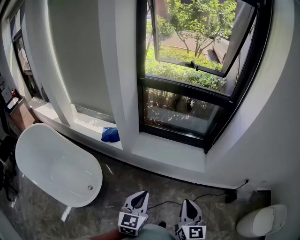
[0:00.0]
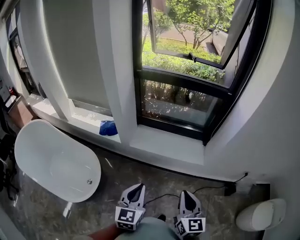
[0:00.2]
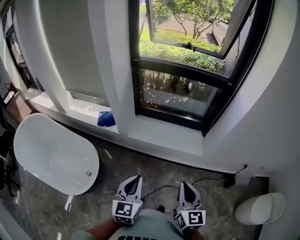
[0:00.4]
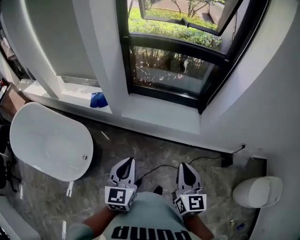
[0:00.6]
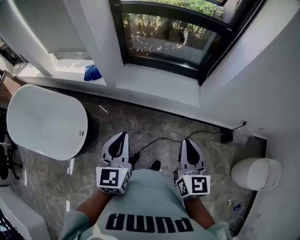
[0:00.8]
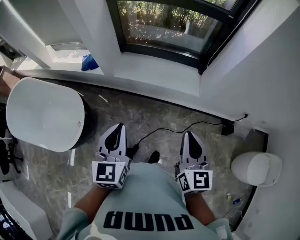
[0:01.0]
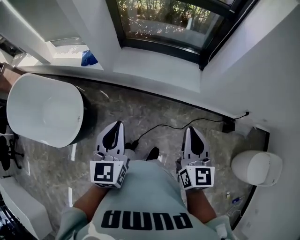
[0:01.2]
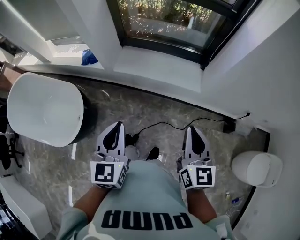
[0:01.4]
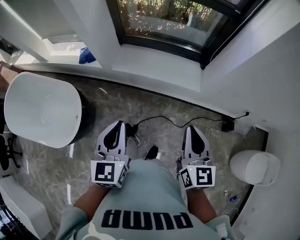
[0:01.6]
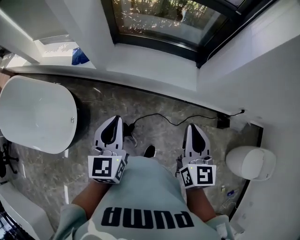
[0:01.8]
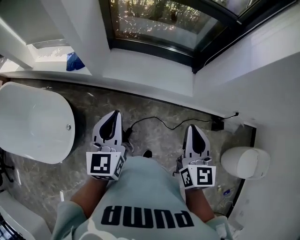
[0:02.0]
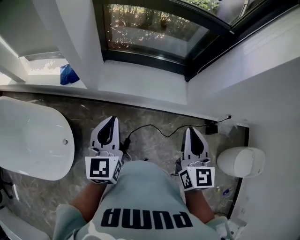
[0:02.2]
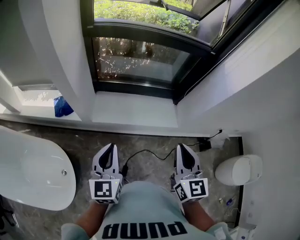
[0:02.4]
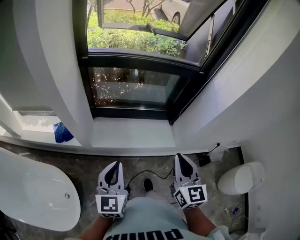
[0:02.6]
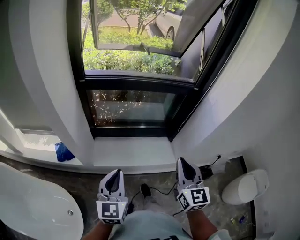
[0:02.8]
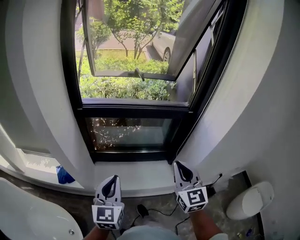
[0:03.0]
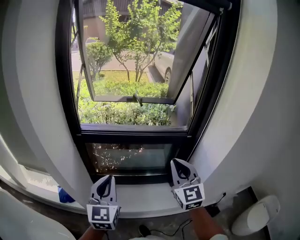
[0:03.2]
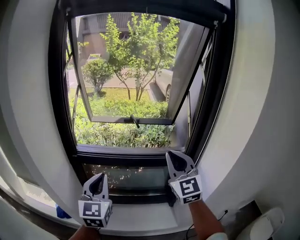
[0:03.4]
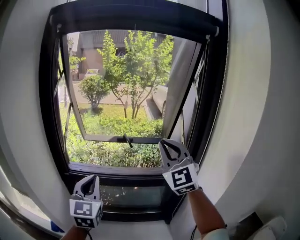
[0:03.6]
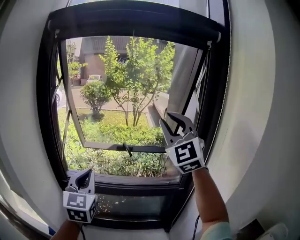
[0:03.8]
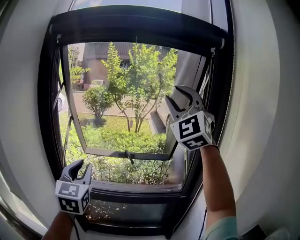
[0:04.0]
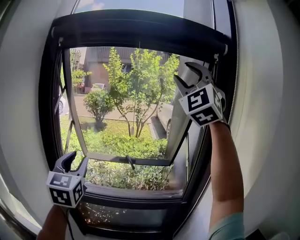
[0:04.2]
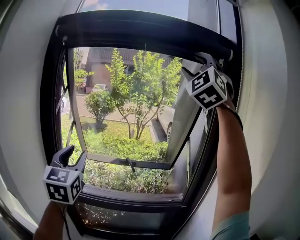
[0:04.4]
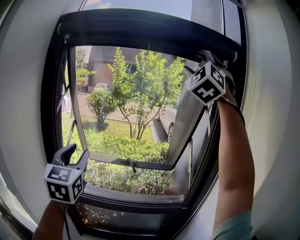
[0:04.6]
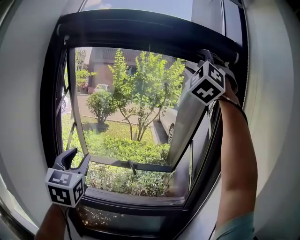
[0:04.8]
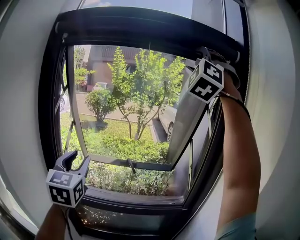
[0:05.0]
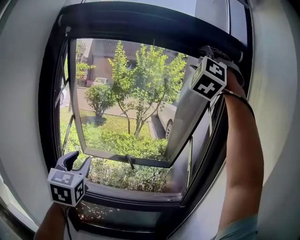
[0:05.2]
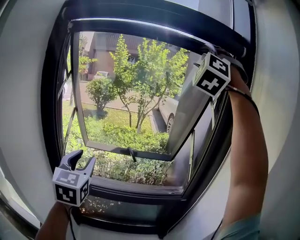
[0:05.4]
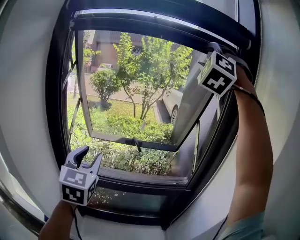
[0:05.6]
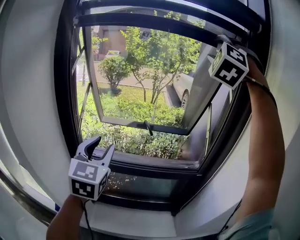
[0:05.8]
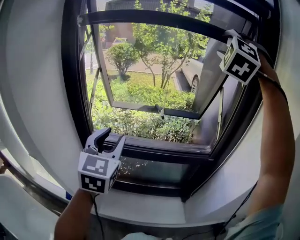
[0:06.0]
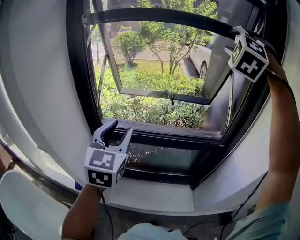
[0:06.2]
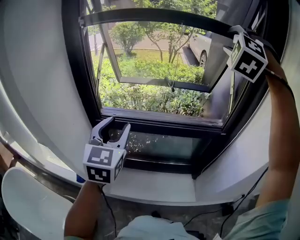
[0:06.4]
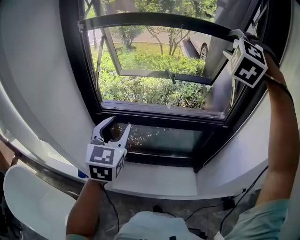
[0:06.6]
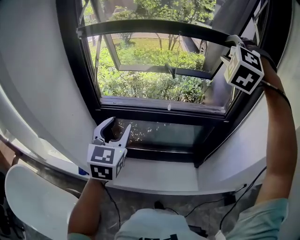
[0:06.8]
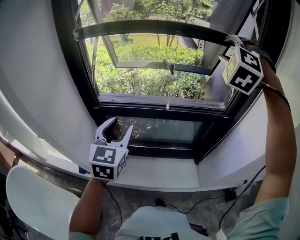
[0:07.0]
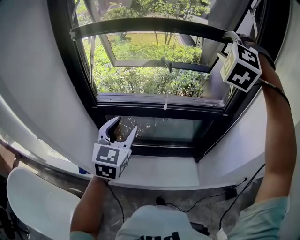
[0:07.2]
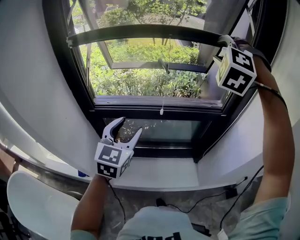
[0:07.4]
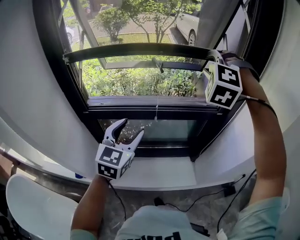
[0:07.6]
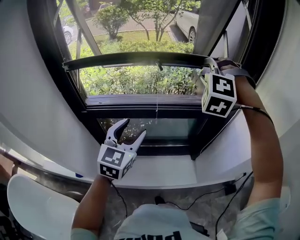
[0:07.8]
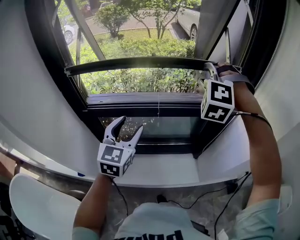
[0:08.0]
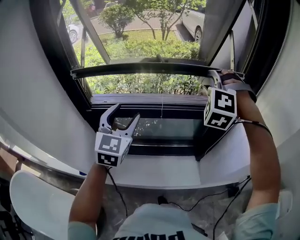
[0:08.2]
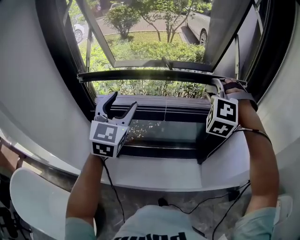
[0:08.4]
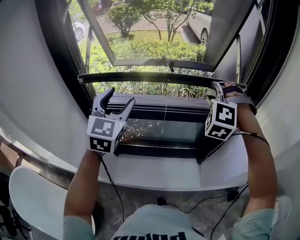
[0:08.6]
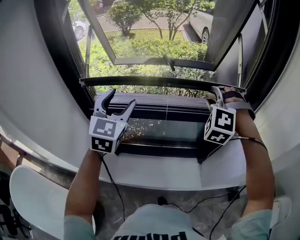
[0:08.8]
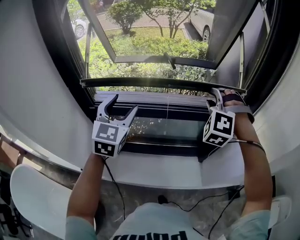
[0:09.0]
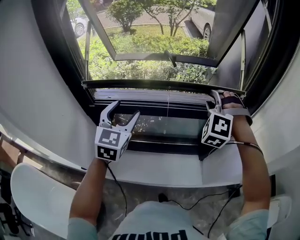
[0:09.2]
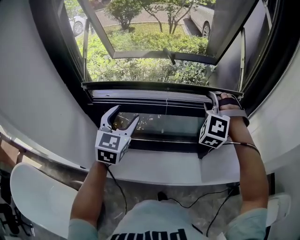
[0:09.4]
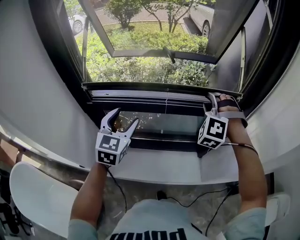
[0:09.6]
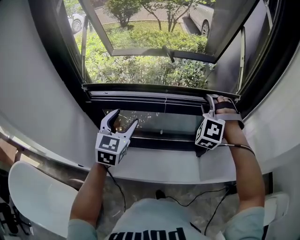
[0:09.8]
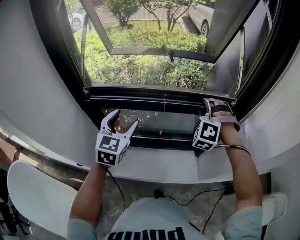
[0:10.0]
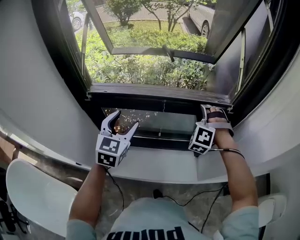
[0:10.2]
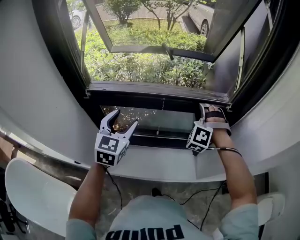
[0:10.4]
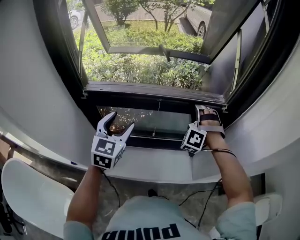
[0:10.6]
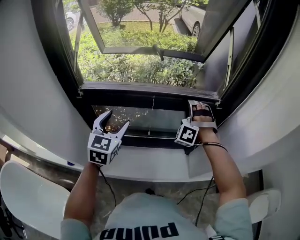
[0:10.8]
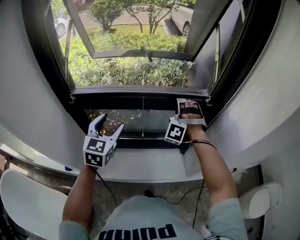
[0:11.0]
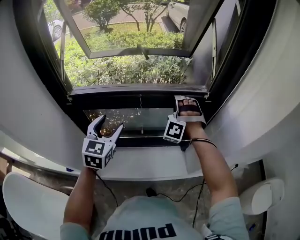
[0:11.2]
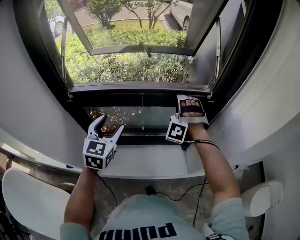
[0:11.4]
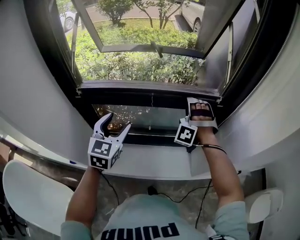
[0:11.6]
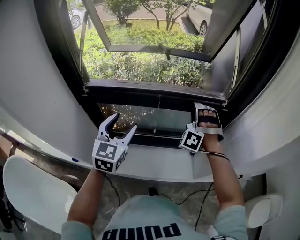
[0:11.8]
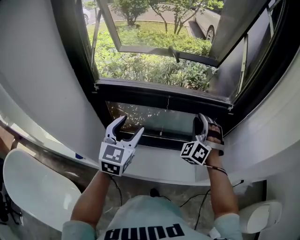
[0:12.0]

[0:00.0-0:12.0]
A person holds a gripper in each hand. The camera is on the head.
0.0 to 1.6 s: The left gripper changes place by roughly 5 cm. Meanwhile the right gripper travels to the right and forward by about 10 cm.
1.6 to 3.0 s: The right gripper travels forward and upward by approximately 30 cm, and rotates some 30 degrees. The left gripper shifts roughly 30 cm forward, and rotates roughly 20 degrees.
3.0 to 4.4 s: The left gripper moves upward and forward, approximately 50 cm, rotates approximately 20 degrees, and opens its fingers; the right gripper heads upward and forward, covering approximately 70 cm, rolls counterclockwise, seen from behind, by about 60 degrees, and opens up.
4.4 to 6.0 s: The right gripper goes about 15 cm downward, and swivels approximately 30 degrees; the left gripper is displaced downward and backward by roughly 15 cm.
6.0 to 7.6 s: The left gripper is displaced downward by about 15 cm. Meanwhile the right gripper is displaced downward by roughly 30 cm, and changes its angle by approximately 20 degrees.
7.6 to 9.0 s: The left gripper is displaced to the left and forward by about 10 cm. The right gripper moves downward, about 15 cm.
9.0 to 10.4 s: Both grippers move downward, roughly 10 cm.
10.4 to 12.0 s: Both grippers travel together backward, approximately 5 cm. The right gripper rotates about 20 degrees.

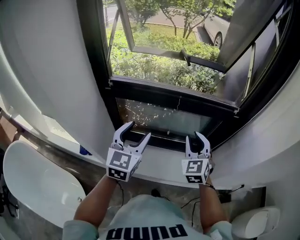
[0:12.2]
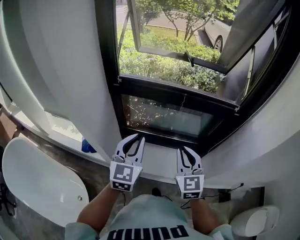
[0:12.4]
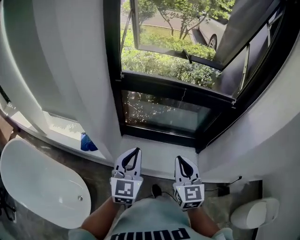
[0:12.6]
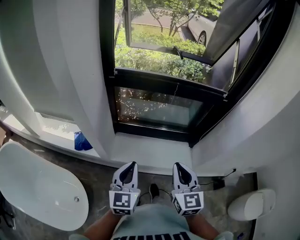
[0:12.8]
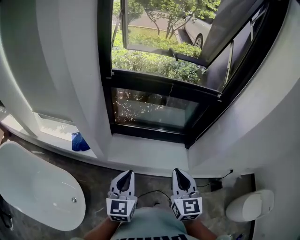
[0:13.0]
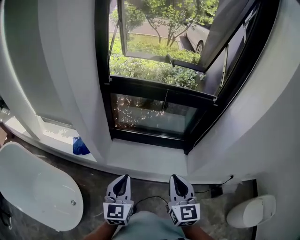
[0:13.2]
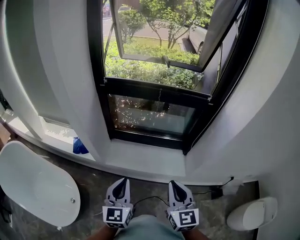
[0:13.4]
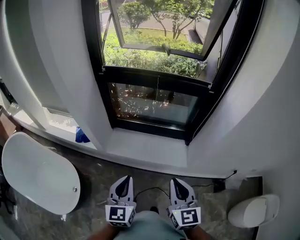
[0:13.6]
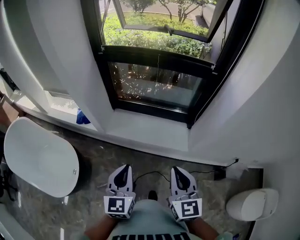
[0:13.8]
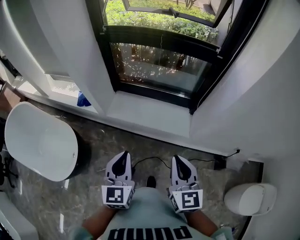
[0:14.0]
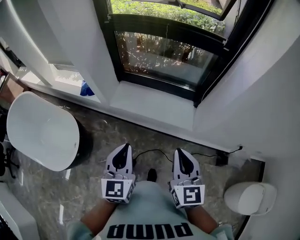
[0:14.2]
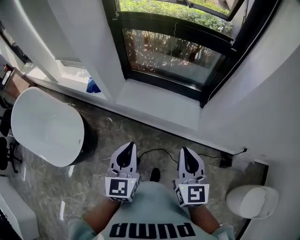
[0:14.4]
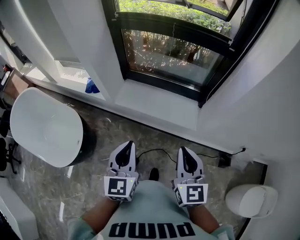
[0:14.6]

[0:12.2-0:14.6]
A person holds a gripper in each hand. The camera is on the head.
12.2 to 13.4 s: The grippers both shift backward by approximately 30 cm. The left gripper closes; the right gripper turns by about 30 degrees, and closes its fingers.
13.4 to 14.6 s: The left gripper shifts about 15 cm backward and to the right; the right gripper shifts some 15 cm backward, to the right and downward.

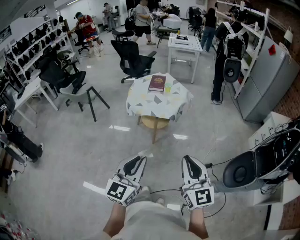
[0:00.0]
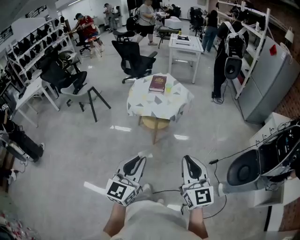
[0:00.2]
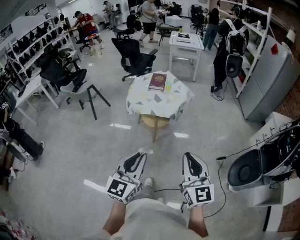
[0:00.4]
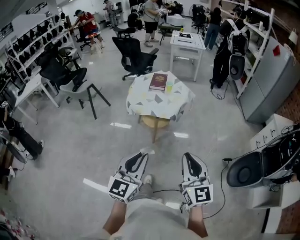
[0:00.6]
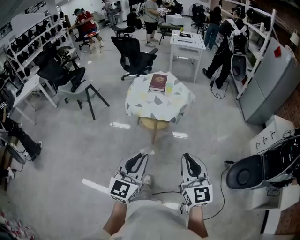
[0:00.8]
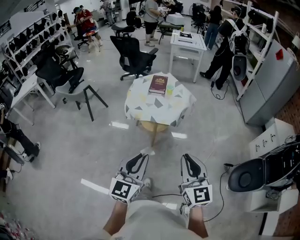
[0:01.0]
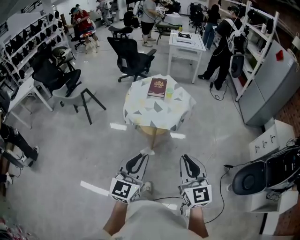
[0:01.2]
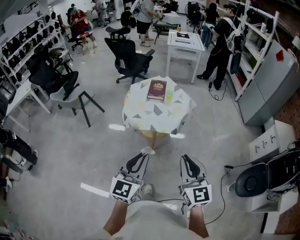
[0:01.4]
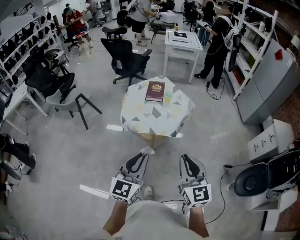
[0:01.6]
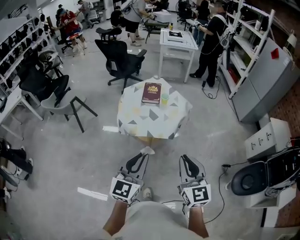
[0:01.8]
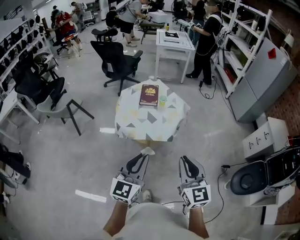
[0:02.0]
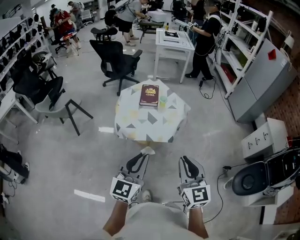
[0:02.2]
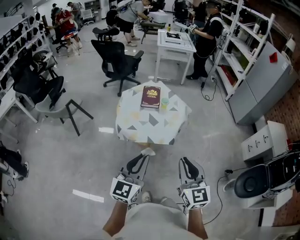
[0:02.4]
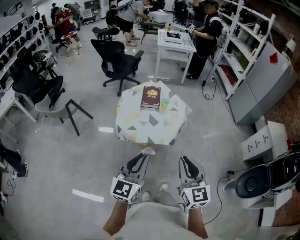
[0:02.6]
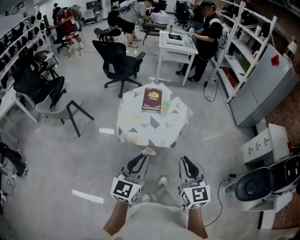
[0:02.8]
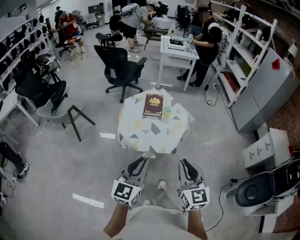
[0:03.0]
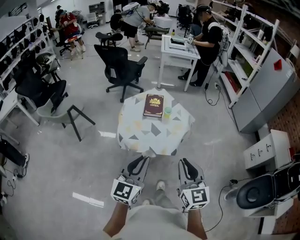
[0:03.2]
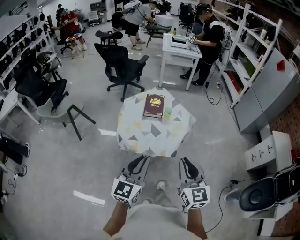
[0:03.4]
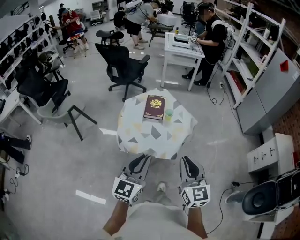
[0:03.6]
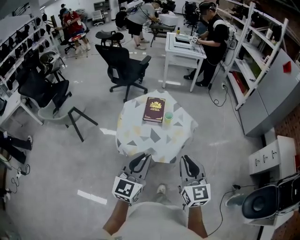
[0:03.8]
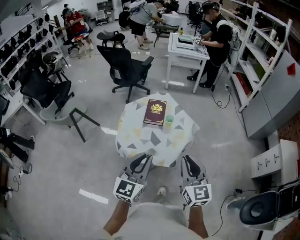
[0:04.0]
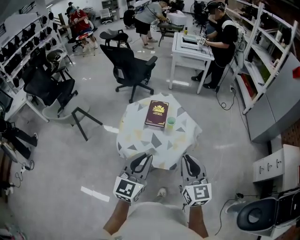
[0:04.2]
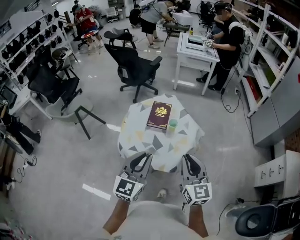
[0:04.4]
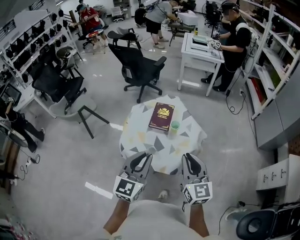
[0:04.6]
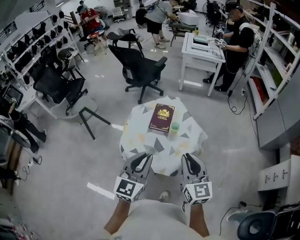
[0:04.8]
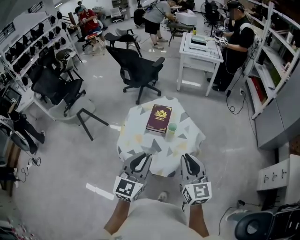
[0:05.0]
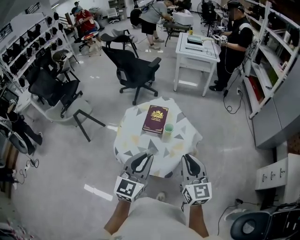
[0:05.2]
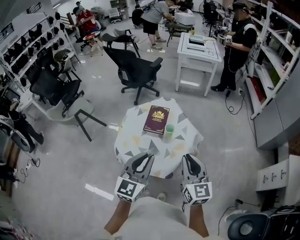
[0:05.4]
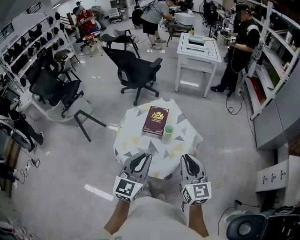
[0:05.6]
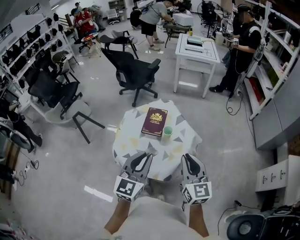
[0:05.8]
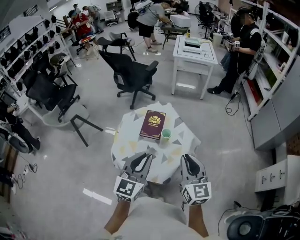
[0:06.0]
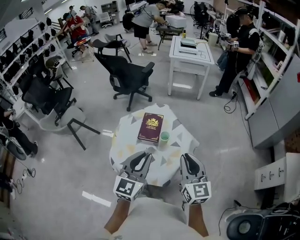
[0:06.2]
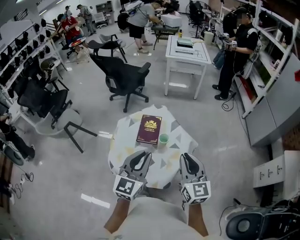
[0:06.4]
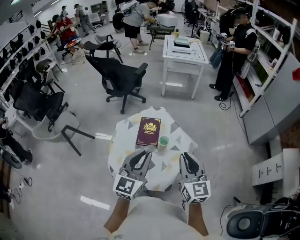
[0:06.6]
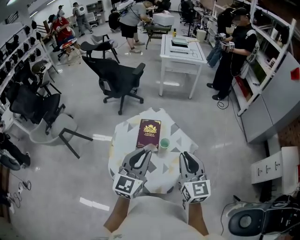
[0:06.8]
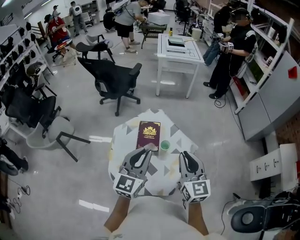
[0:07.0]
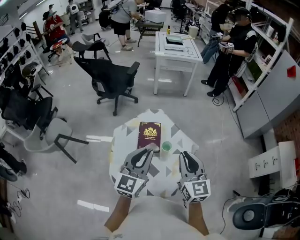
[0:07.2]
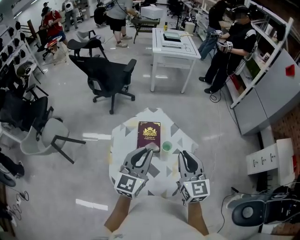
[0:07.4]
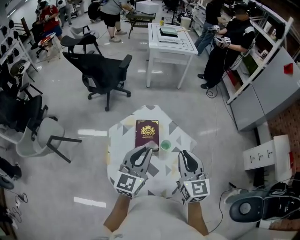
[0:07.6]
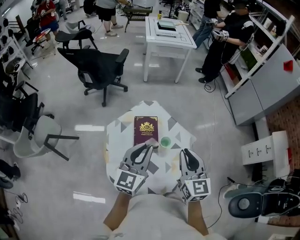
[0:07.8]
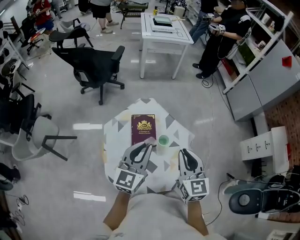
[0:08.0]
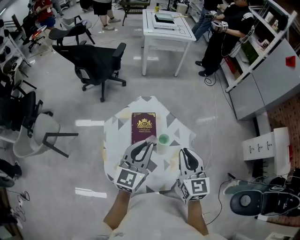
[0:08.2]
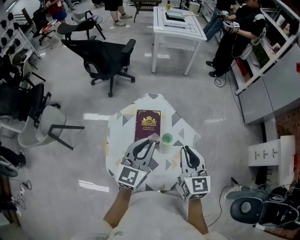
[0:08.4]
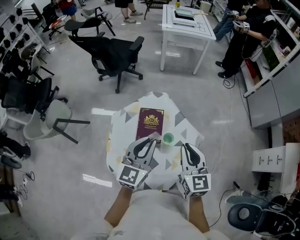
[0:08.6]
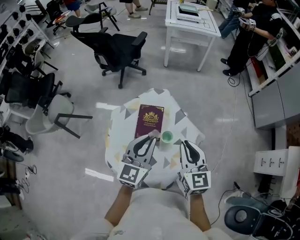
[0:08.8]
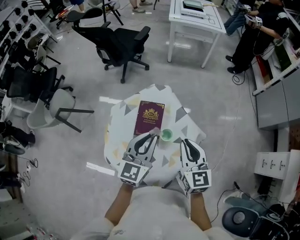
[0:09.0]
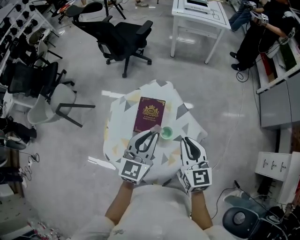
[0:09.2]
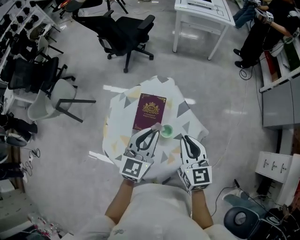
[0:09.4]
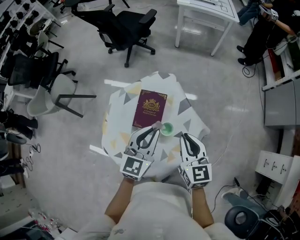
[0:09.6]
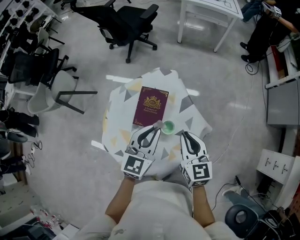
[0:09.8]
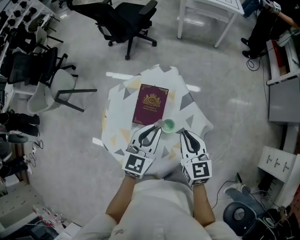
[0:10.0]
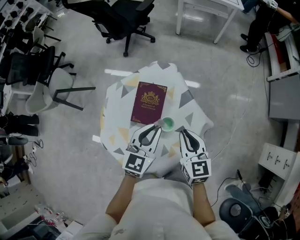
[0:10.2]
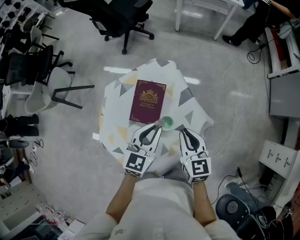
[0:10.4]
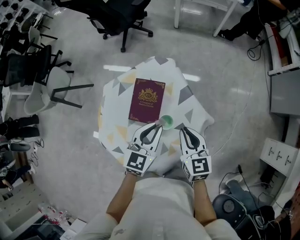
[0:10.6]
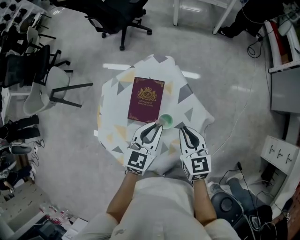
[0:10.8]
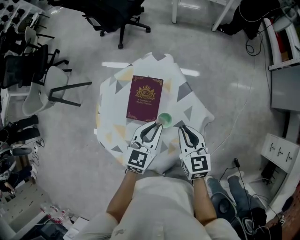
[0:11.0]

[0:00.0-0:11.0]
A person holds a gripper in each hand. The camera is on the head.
0.0 to 1.6 s: The two grippers go roughly 20 cm forward.
1.6 to 3.2 s: The two grippers go some 10 cm forward.
3.2 to 4.8 s: The left gripper travels forward and to the right by some 20 cm; the right gripper shifts roughly 20 cm forward.
4.8 to 6.2 s: The two grippers go about 5 cm forward.
6.2 to 7.8 s: Both grippers move forward and to the left, approximately 15 cm.
7.8 to 9.4 s: The left gripper travels to the right, downward and forward by some 15 cm. The right gripper shifts approximately 15 cm downward, forward and to the right, and swivels roughly 20 degrees.
9.4 to 11.0 s: The grippers both shift downward by approximately 10 cm.
